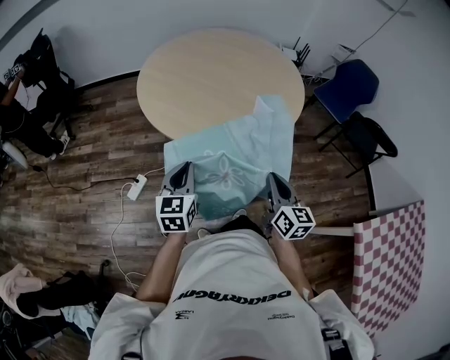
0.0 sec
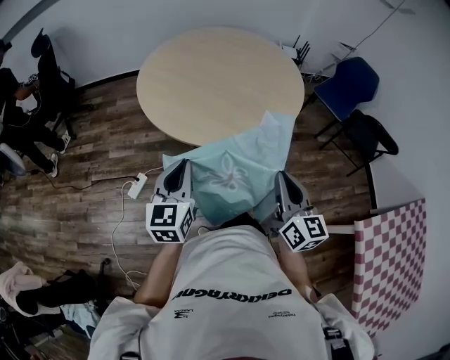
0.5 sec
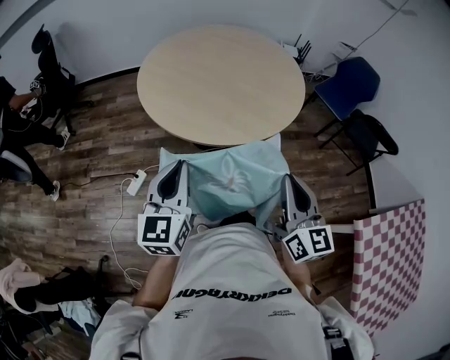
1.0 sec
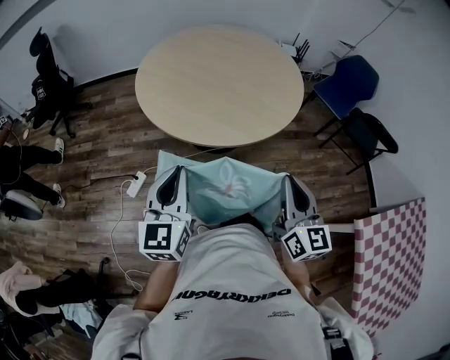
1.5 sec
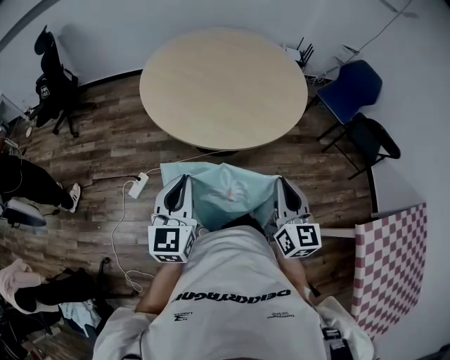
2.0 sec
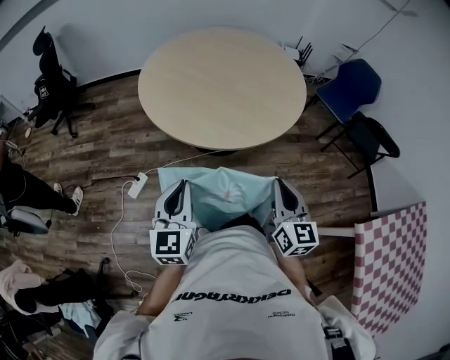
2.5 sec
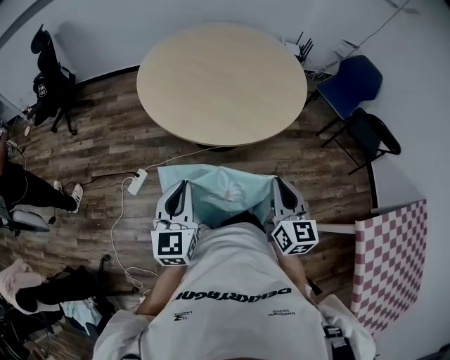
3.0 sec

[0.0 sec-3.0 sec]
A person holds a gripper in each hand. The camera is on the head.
0.0 sec to 1.5 sec: The right gripper shifts approximately 10 cm upward. The left gripper goes some 15 cm upward and backward.
1.5 sec to 3.0 sec: The two grippers go roughly 5 cm downward.

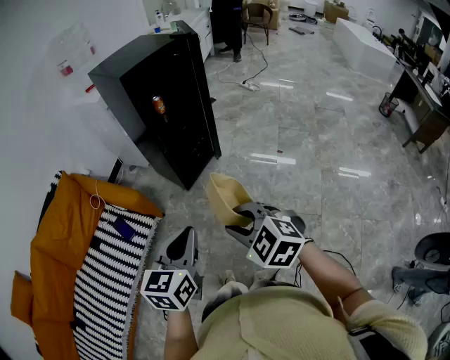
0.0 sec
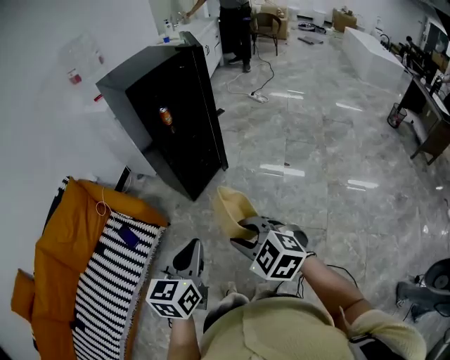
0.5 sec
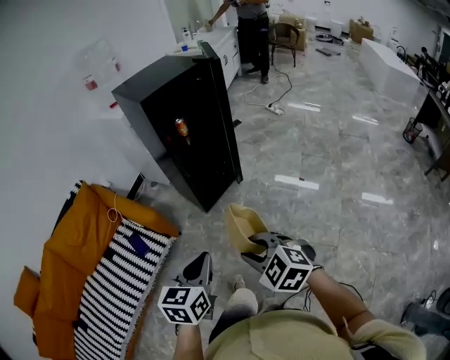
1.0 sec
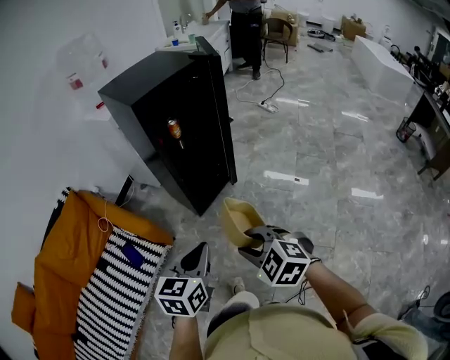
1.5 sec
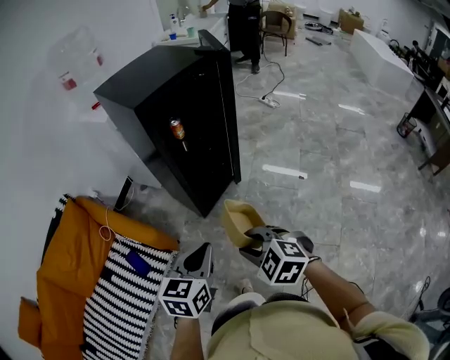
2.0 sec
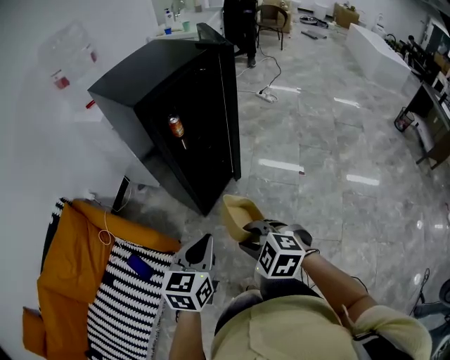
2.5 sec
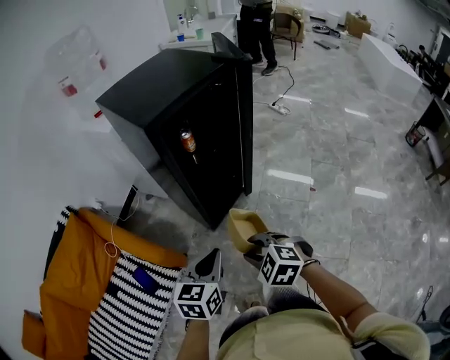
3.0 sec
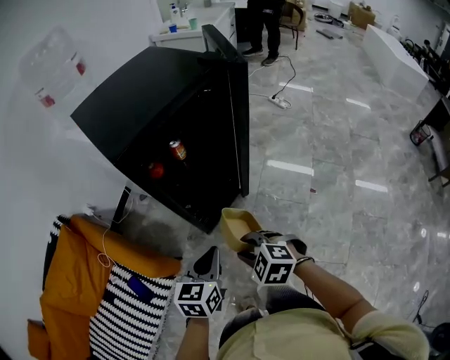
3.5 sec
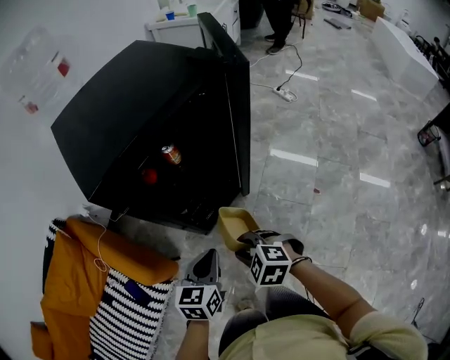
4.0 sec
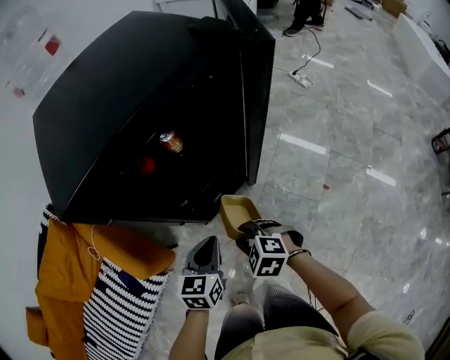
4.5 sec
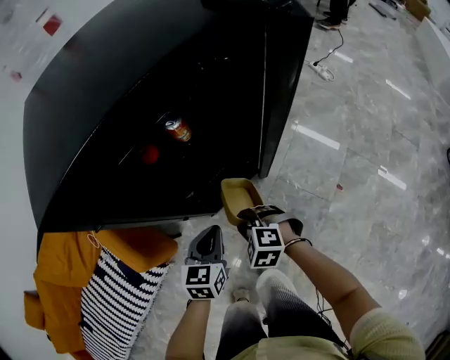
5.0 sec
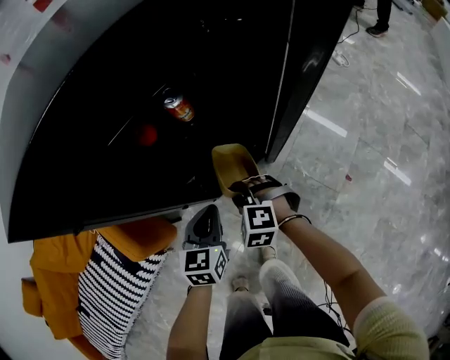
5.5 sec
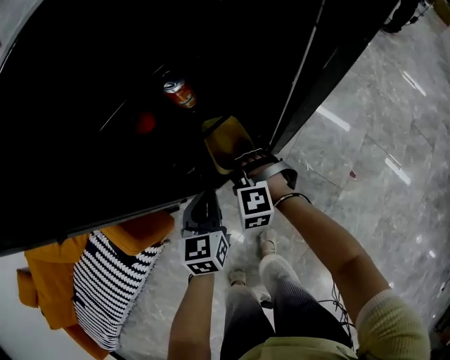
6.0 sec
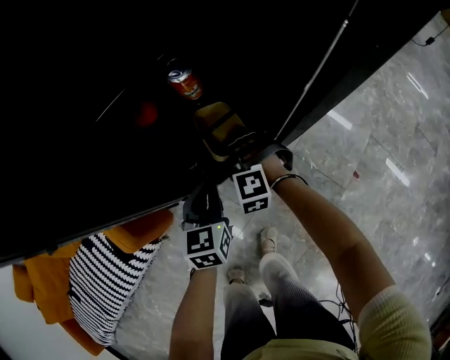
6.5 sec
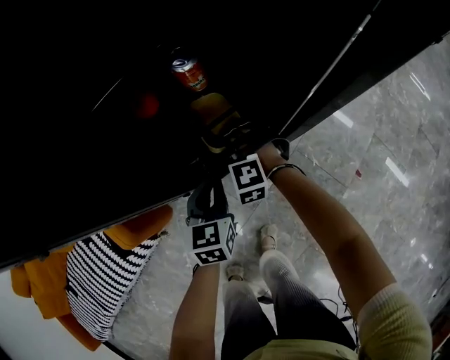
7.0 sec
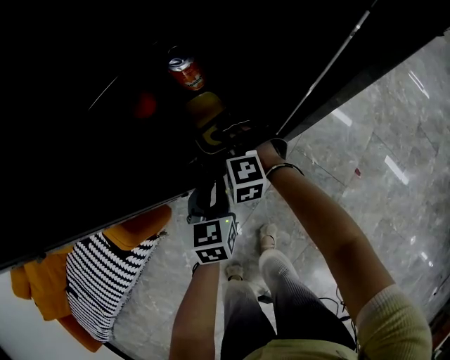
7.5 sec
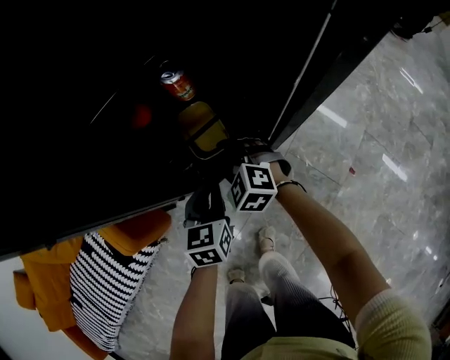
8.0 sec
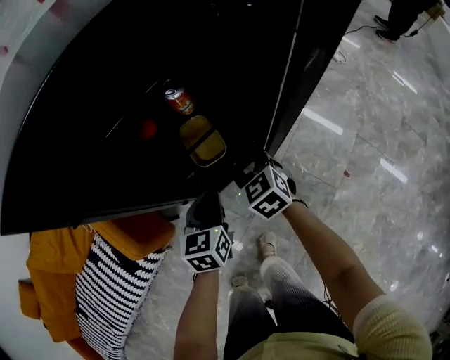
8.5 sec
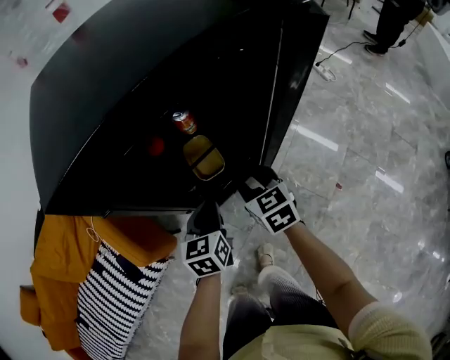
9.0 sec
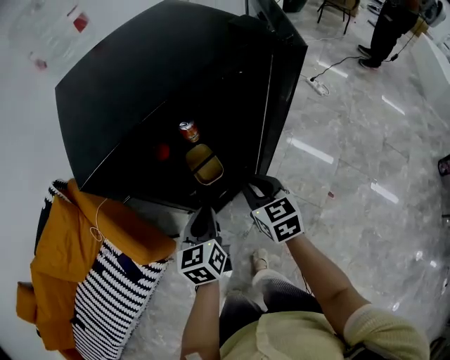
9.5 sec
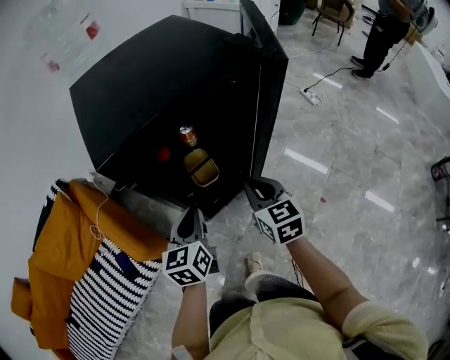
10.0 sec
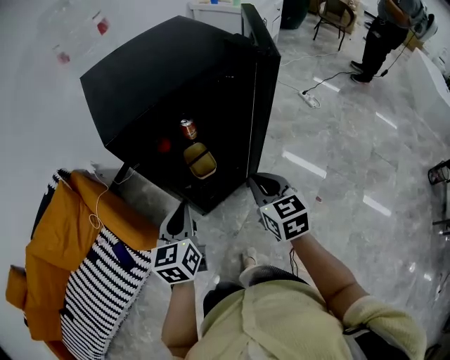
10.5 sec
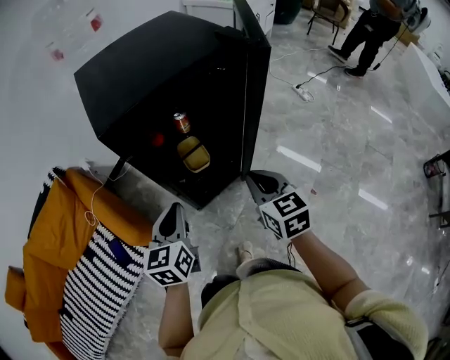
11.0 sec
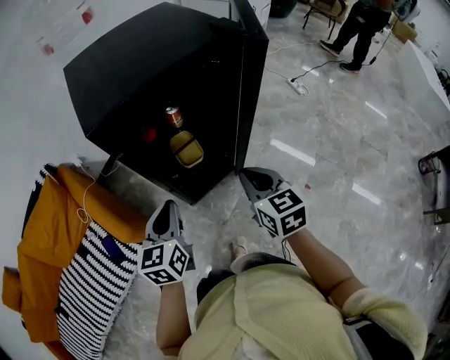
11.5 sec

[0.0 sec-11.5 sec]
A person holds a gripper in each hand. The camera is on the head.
0.0 sec to 2.0 sec: The grippers both shift forward by roughly 15 cm.
2.0 sec to 4.0 sec: The grippers both shift forward and downward by some 25 cm.
4.0 sec to 6.0 sec: The grippers both shift forward and downward by some 25 cm. The right gripper swivels approximately 40 degrees; the left gripper rotates about 20 degrees.
6.0 sec to 7.5 sec: The right gripper shifts roughly 5 cm forward.
7.5 sec to 9.5 sec: The right gripper goes roughly 30 cm upward, to the right and backward, rotates around the line of its fingers by approximately 70 degrees, clockwise from behind, and closes its fingers. The left gripper moves upward, roughly 20 cm.
9.5 sec to 11.5 sec: The left gripper is displaced upward and backward by roughly 10 cm; the right gripper is displaced backward and upward by approximately 10 cm.

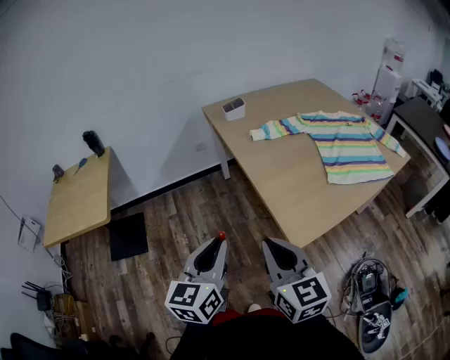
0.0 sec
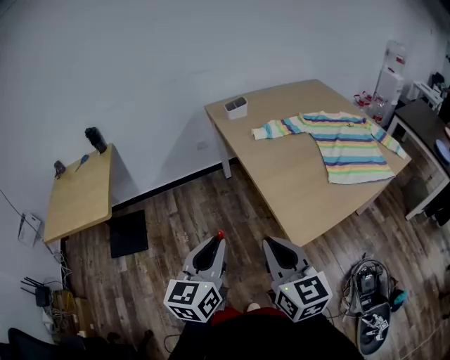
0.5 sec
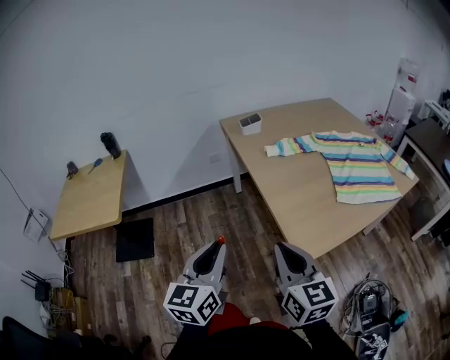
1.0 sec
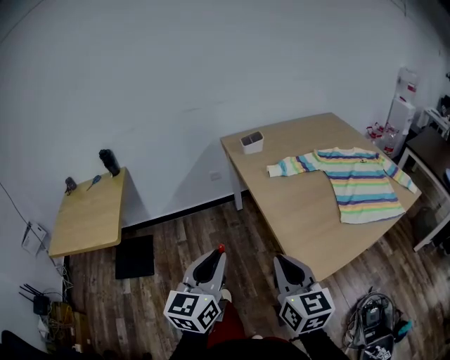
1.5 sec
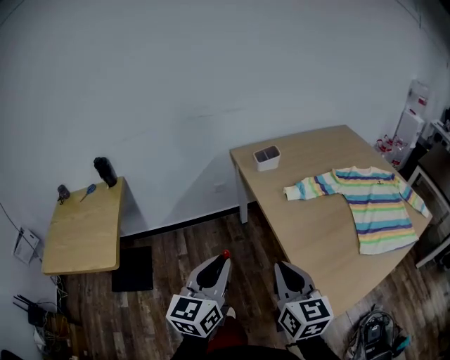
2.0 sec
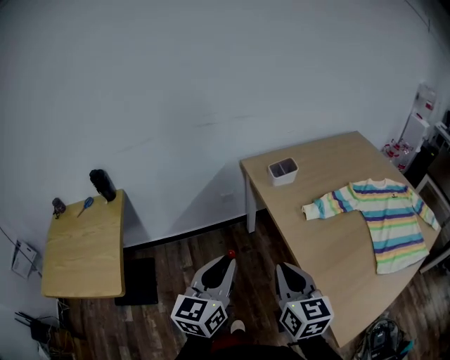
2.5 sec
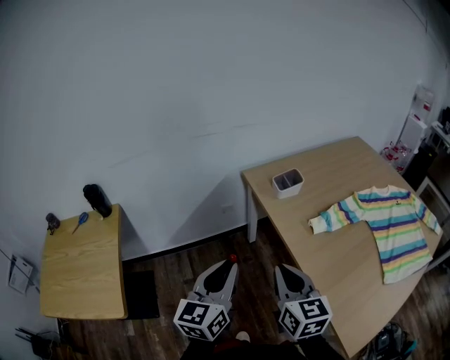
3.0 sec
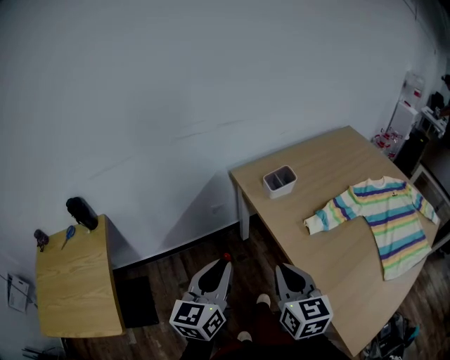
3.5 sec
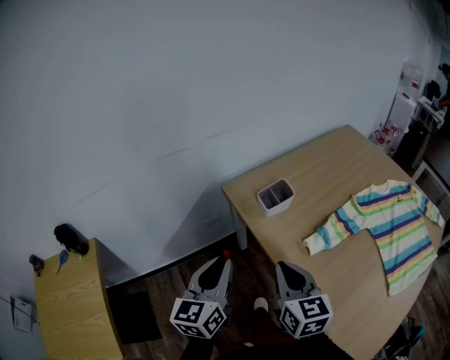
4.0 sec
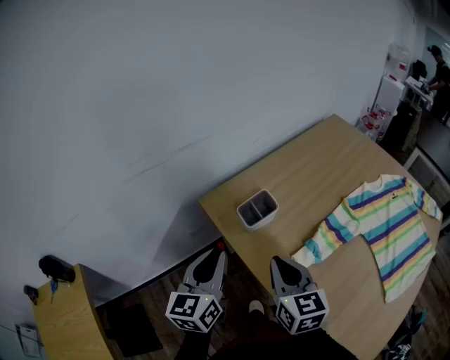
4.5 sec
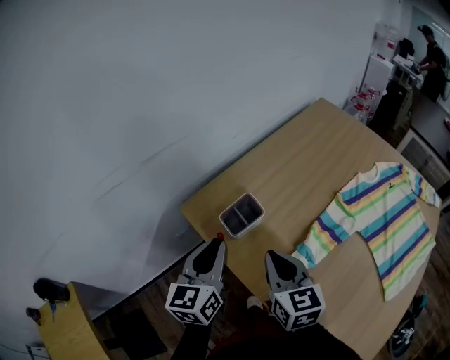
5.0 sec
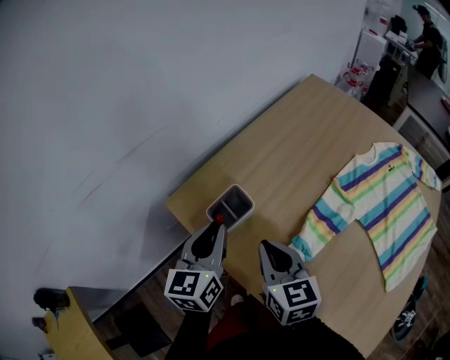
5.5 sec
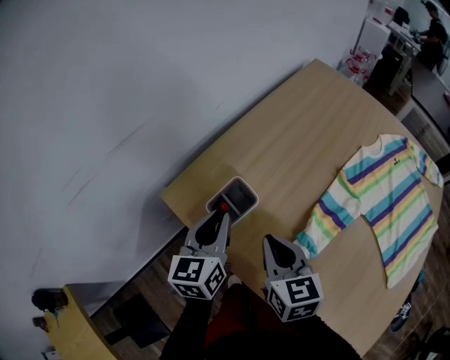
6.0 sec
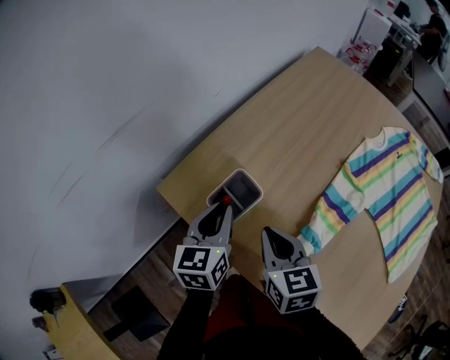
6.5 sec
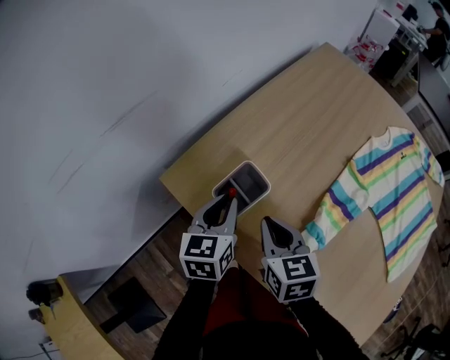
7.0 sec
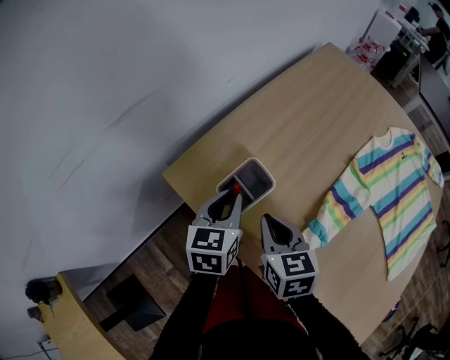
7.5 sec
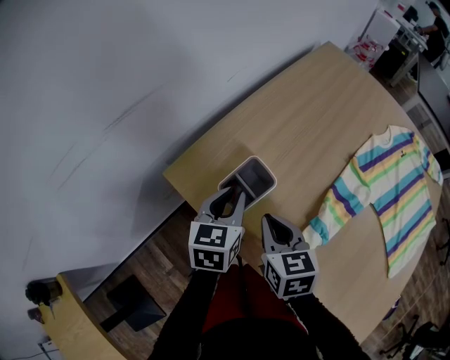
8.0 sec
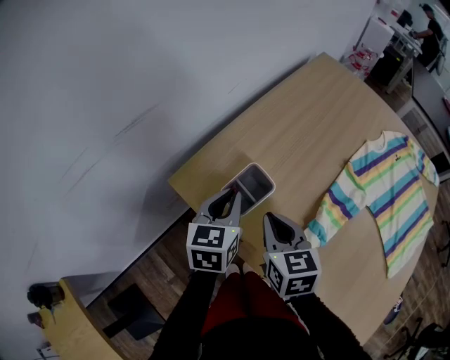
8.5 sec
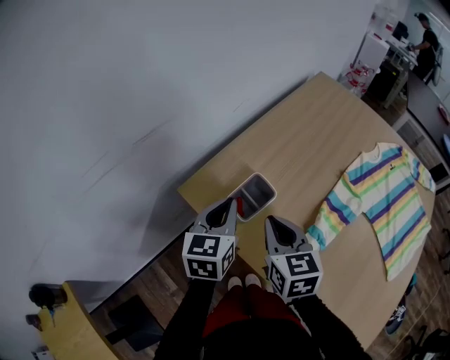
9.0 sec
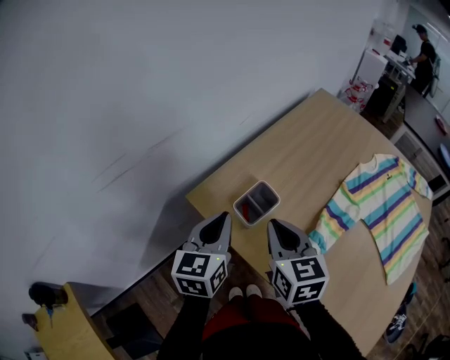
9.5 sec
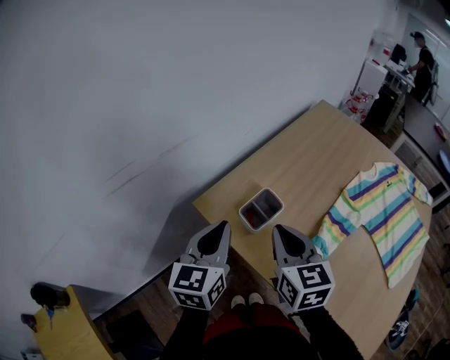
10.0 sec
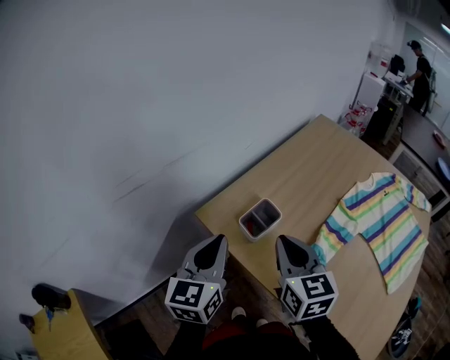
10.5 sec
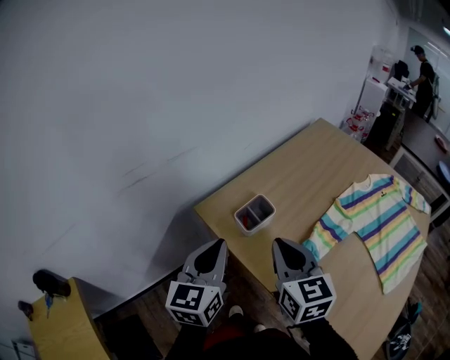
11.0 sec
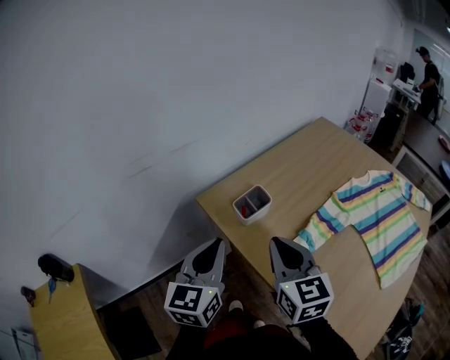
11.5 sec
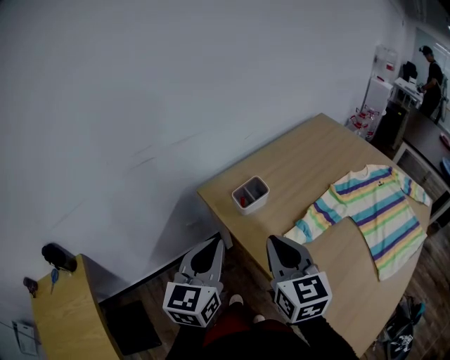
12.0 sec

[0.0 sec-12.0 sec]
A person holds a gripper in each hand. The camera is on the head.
0.0 sec to 2.0 sec: The left gripper heads forward and to the left, covering approximately 20 cm. Meanwhile the right gripper goes some 20 cm forward.
2.0 sec to 4.0 sec: The two grippers go about 35 cm forward.
4.0 sec to 6.0 sec: The left gripper moves forward and to the right, about 30 cm, while the right gripper goes some 20 cm forward.
6.0 sec to 8.0 sec: The left gripper travels downward by roughly 5 cm; the right gripper moves some 5 cm.
8.0 sec to 10.0 sec: The right gripper travels upward by roughly 15 cm. Meanwhile the left gripper moves upward, backward and to the left, approximately 20 cm.
10.0 sec to 12.0 sec: The two grippers go about 15 cm backward.
